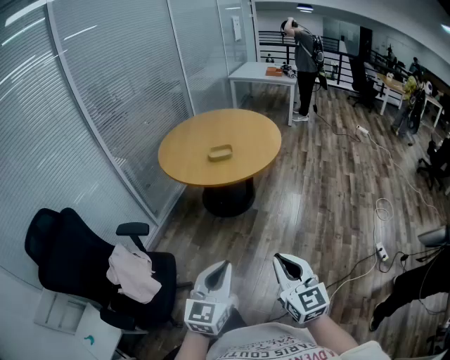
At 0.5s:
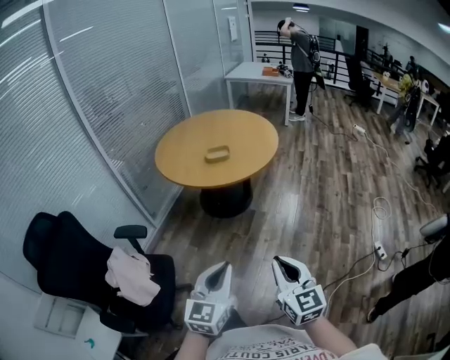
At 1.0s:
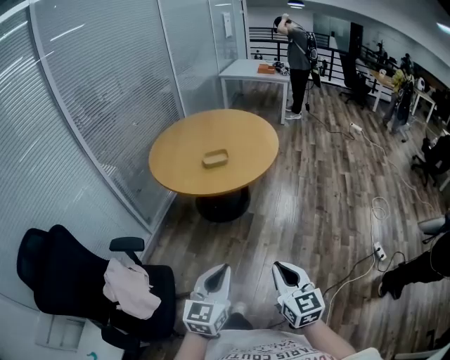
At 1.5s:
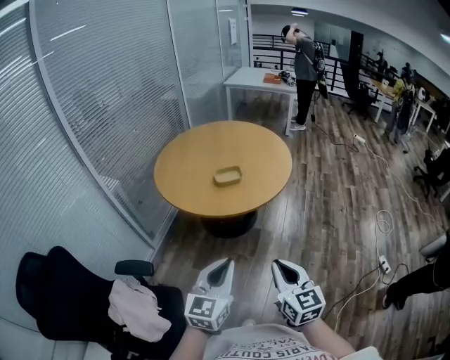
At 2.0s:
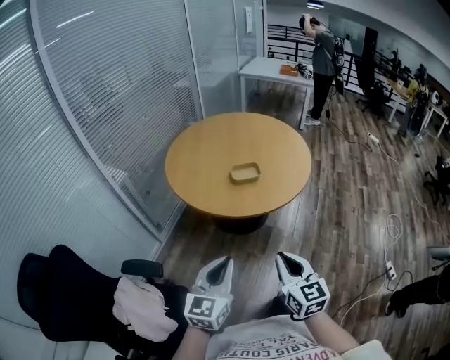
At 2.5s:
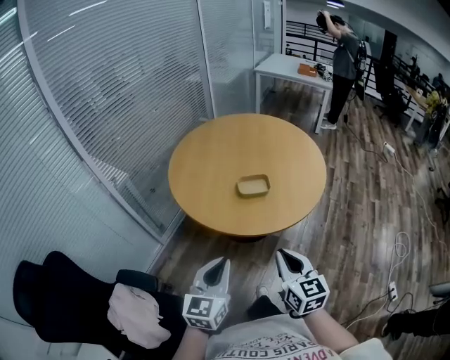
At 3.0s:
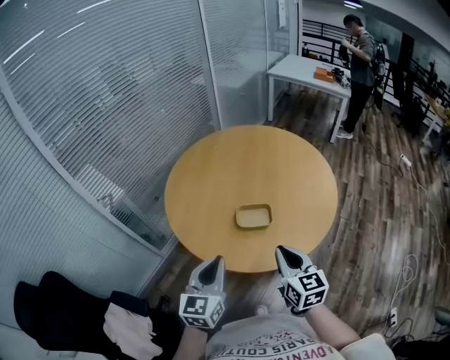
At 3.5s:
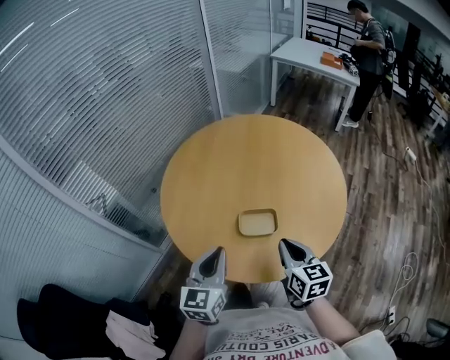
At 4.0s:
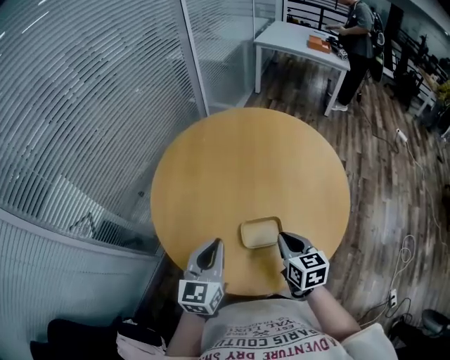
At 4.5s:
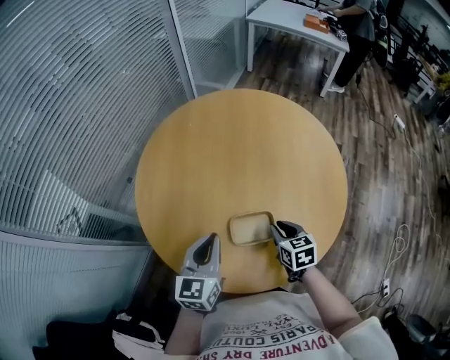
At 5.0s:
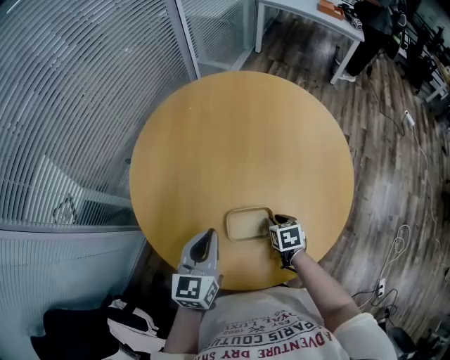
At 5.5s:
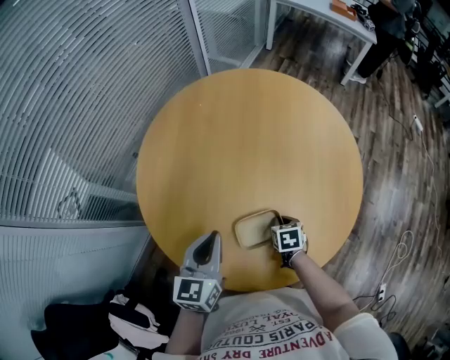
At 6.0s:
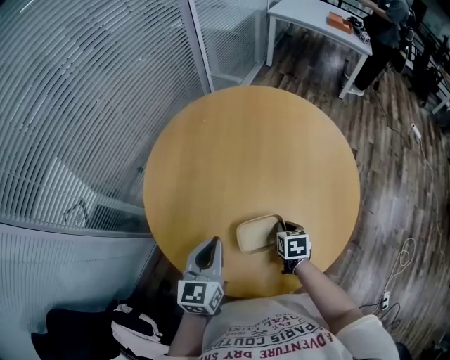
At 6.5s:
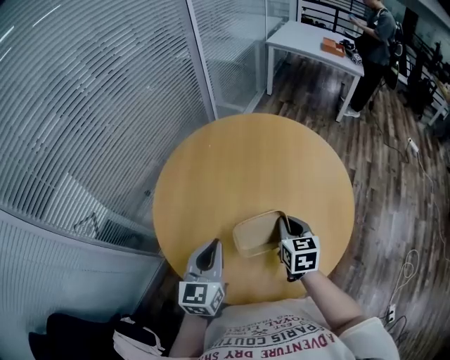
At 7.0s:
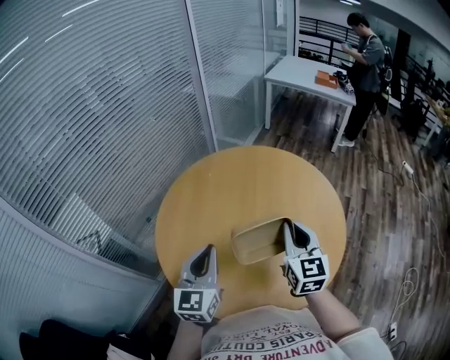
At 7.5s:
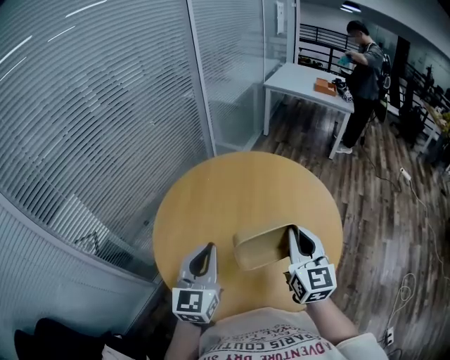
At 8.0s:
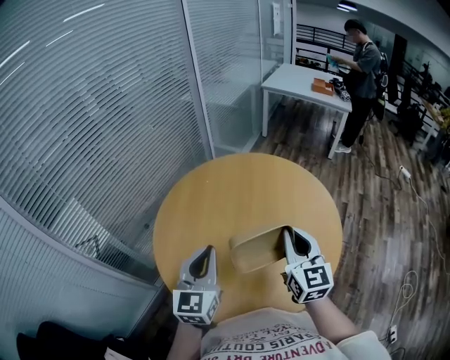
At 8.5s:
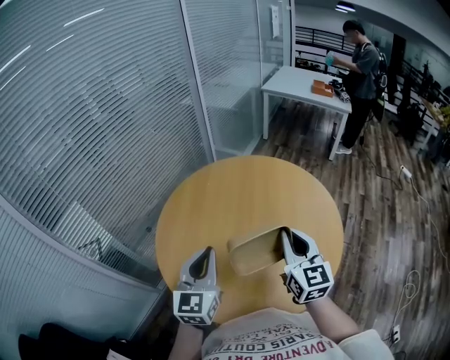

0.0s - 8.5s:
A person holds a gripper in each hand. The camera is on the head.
0.0s - 2.0s: The two grippers go approximately 35 cm forward and to the left.
2.0s - 4.0s: Both grippers are carried forward, about 50 cm. The right gripper turns by roughly 20 degrees.
4.0s - 6.5s: The left gripper goes roughly 5 cm forward, and reaches some 10 cm downward, then returns. The right gripper heads forward, covering some 10 cm, reaches about 25 cm downward, then returns, and opens, then closes once more.
6.5s - 8.5s: The right gripper moves upward, about 20 cm, and turns by roughly 30 degrees. Meanwhile the left gripper goes approximately 10 cm upward.

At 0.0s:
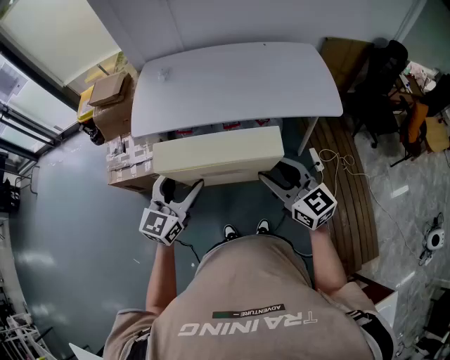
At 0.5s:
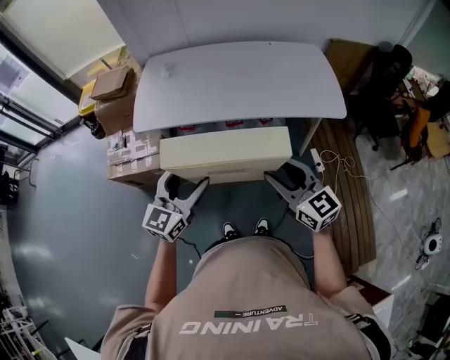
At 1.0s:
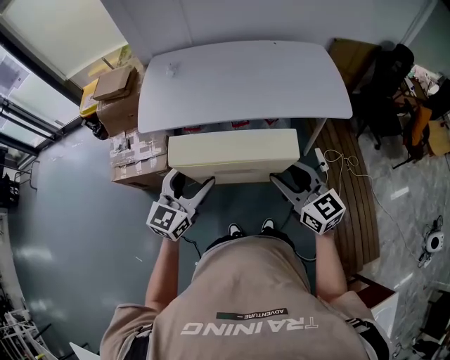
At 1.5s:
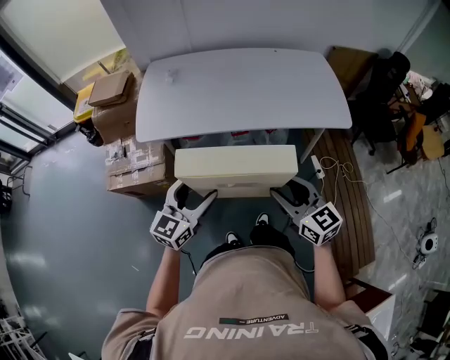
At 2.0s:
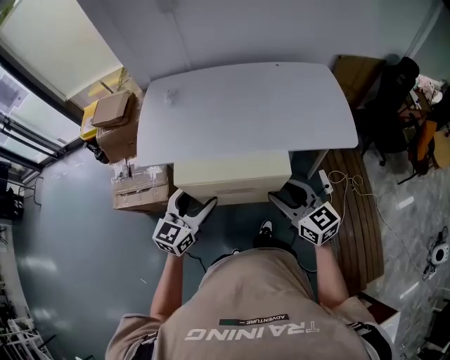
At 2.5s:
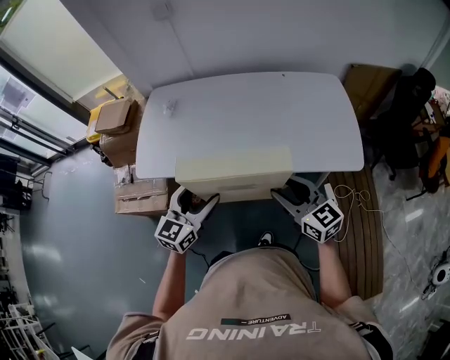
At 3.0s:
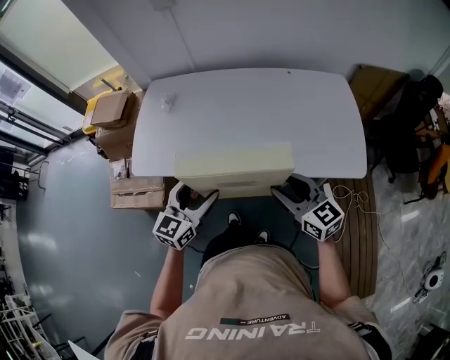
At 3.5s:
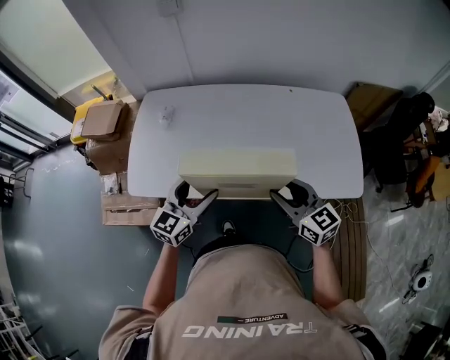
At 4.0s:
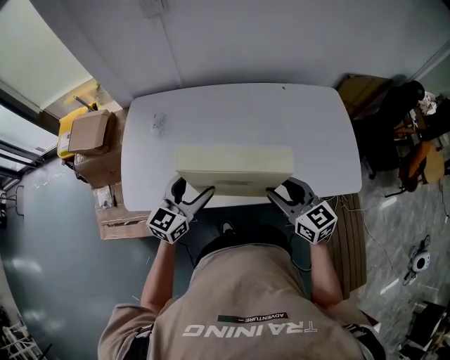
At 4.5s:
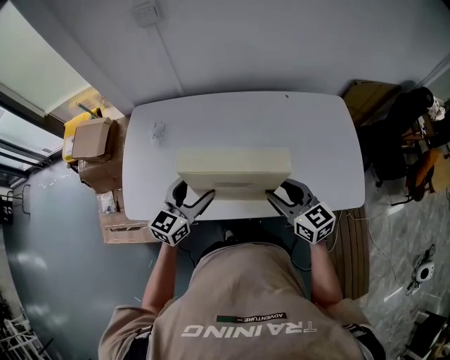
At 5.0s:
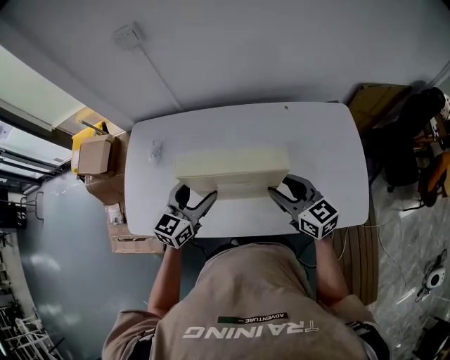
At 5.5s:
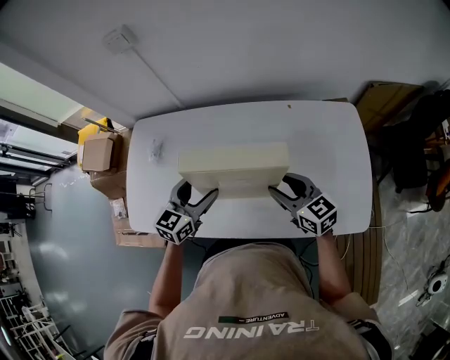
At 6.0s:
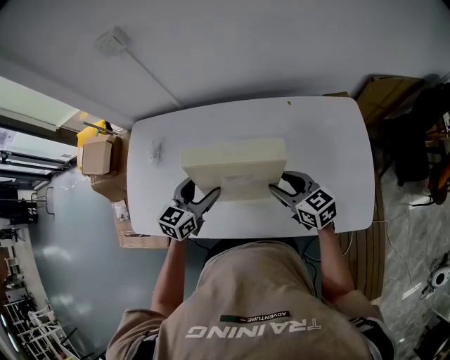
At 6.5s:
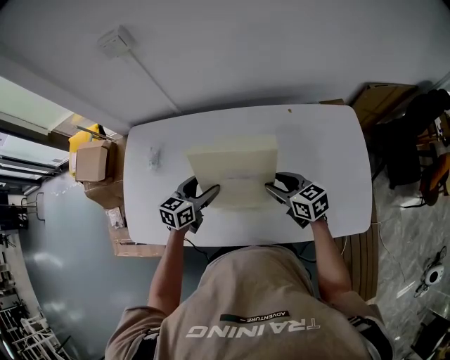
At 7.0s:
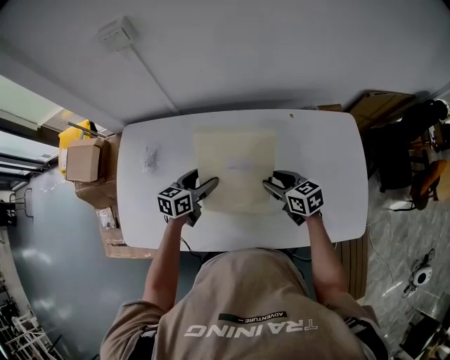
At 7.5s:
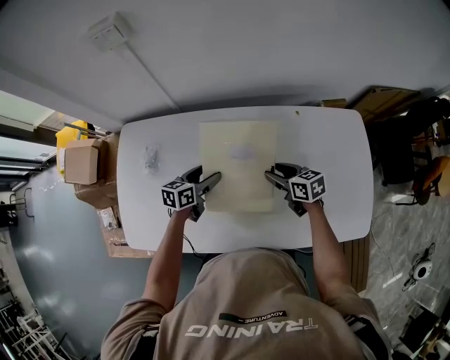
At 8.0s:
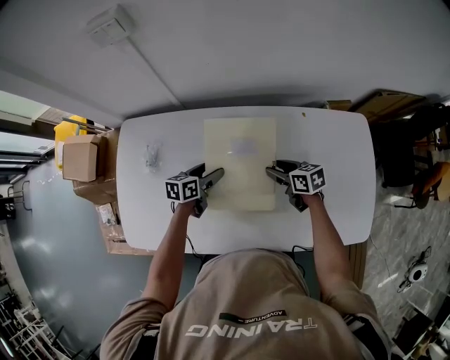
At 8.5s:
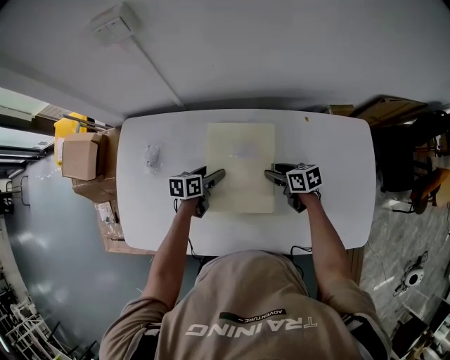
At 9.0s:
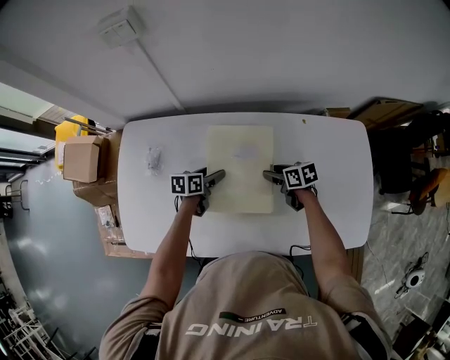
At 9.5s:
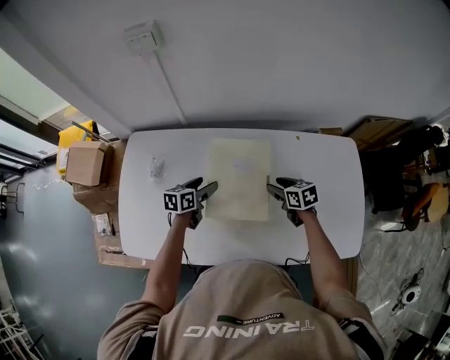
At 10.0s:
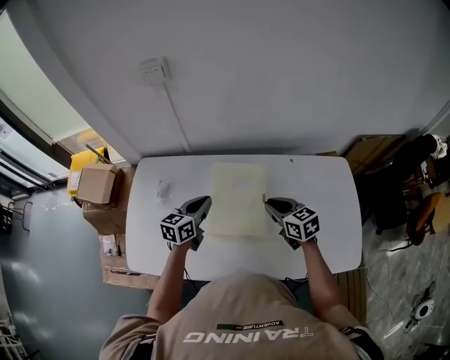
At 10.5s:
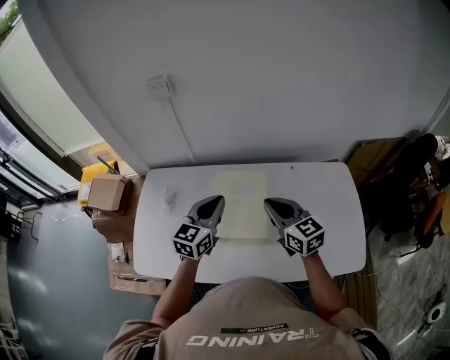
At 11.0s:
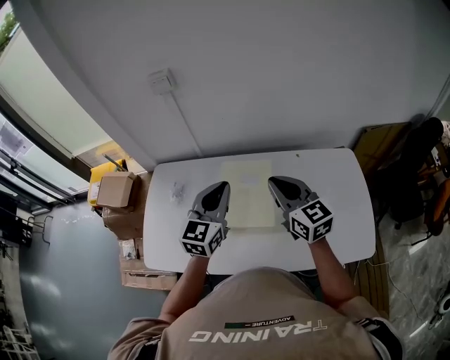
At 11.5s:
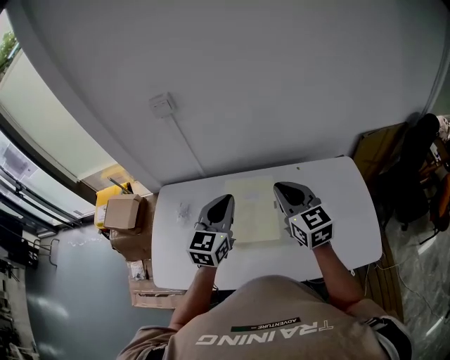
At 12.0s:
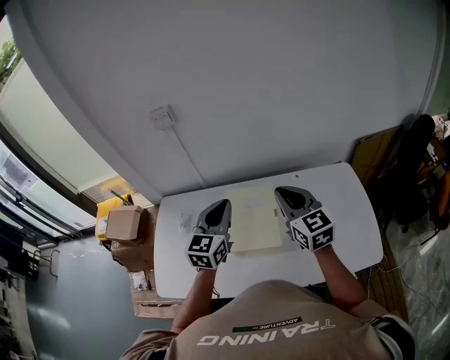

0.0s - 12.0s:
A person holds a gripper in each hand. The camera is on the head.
0.0s - 2.0s: The right gripper shifts about 10 cm forward. Meanwhile the left gripper travels forward and downward by about 15 cm.
2.0s - 4.0s: The grippers both shift forward by approximately 25 cm.
4.0s - 6.0s: The left gripper moves forward and to the right, some 15 cm. The right gripper goes roughly 20 cm forward, to the right and downward.
6.0s - 8.0s: The right gripper shifts roughly 20 cm forward and downward, and turns by some 30 degrees, while the left gripper is displaced downward and forward by roughly 20 cm, and changes its angle by about 30 degrees.
8.0s - 10.0s: Both grippers move upward, some 15 cm. The left gripper changes its angle by about 30 degrees, and closes up. Meanwhile the right gripper rotates about 20 degrees, and closes up.
10.0s - 12.0s: The two grippers go some 20 cm upward. The right gripper rotates some 30 degrees. The left gripper turns by roughly 30 degrees.

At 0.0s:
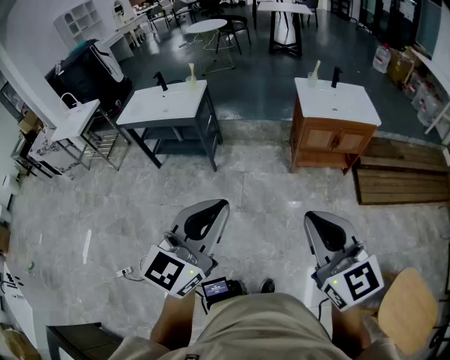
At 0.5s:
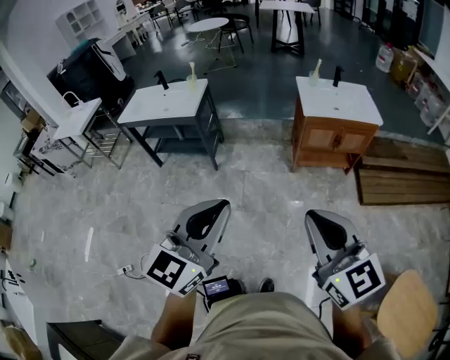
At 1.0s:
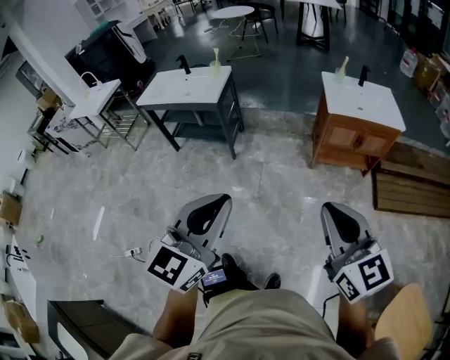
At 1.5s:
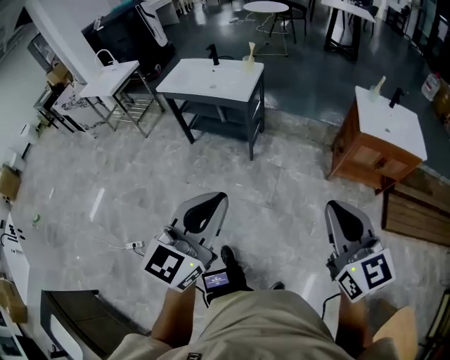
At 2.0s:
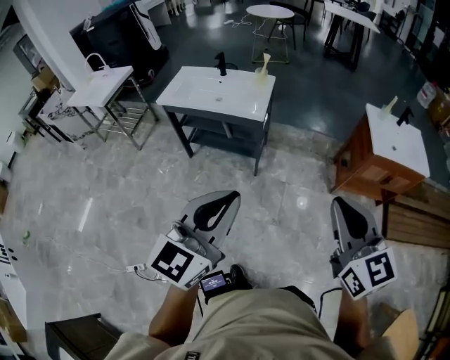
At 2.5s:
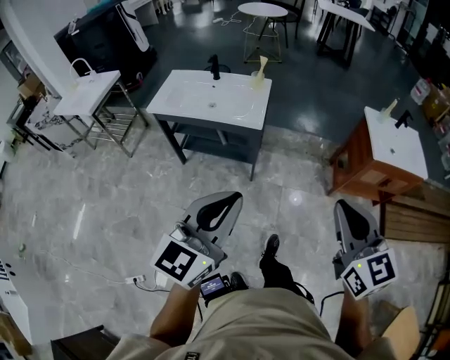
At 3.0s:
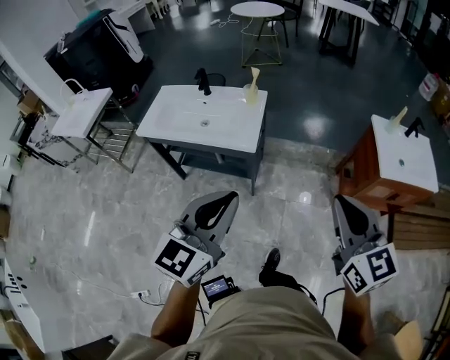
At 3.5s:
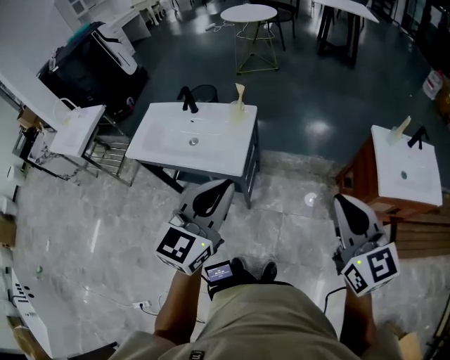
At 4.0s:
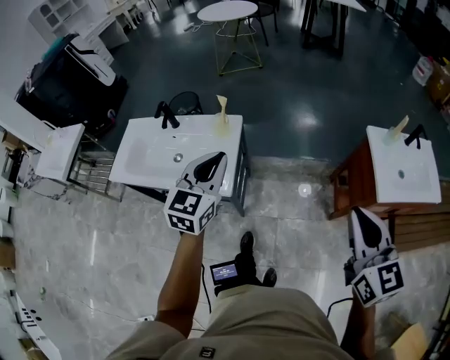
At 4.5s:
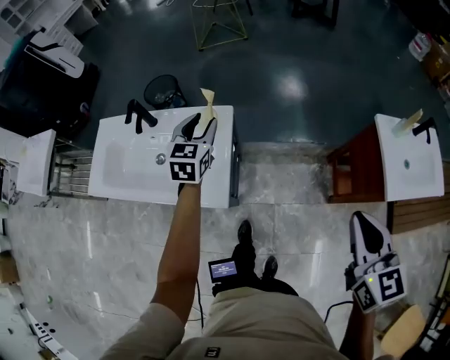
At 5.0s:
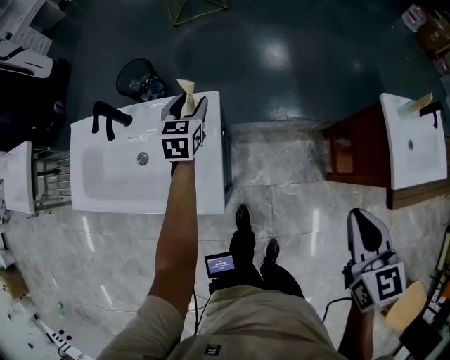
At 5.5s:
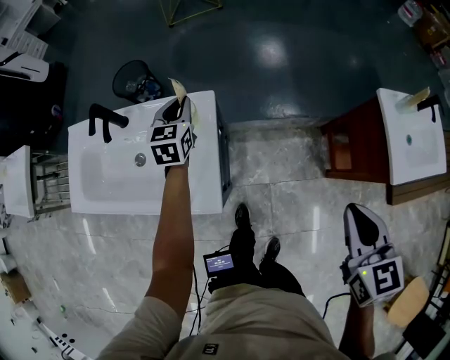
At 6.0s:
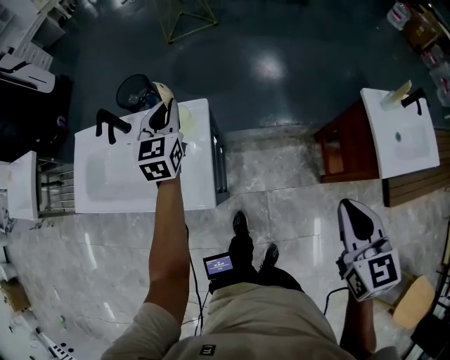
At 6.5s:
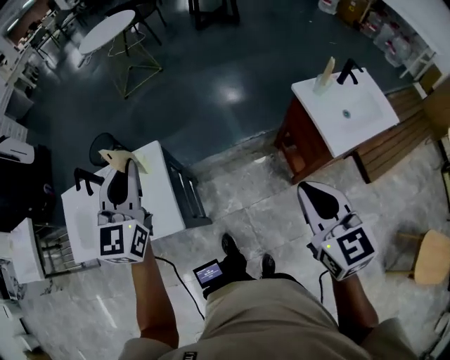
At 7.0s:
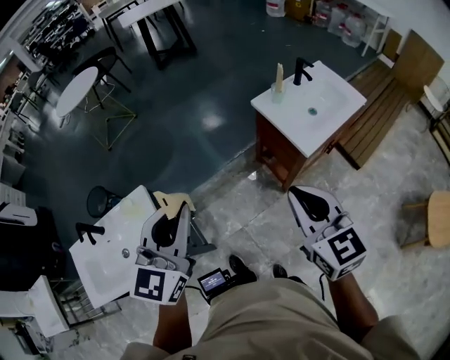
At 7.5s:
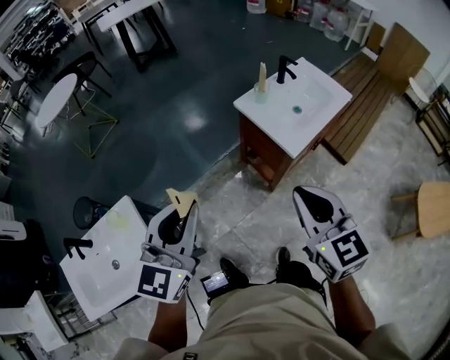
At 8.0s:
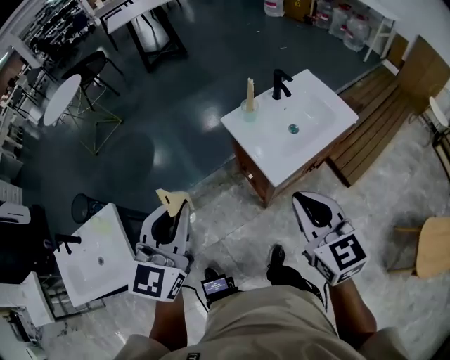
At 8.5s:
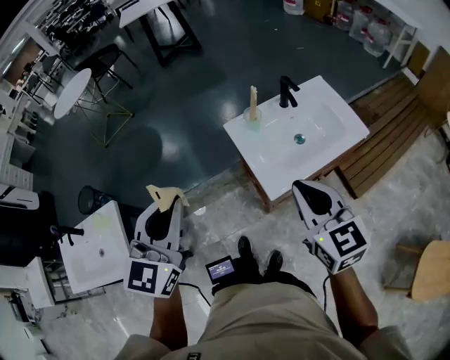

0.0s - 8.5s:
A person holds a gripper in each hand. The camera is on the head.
0.0s - 2.0s: The two grippers travel together, to the left and forward, about 40 cm.
2.0s - 4.0s: The two grippers travel together, forward, roughly 60 cm.
4.0s - 6.5s: The right gripper is displaced forward and downward by roughly 10 cm. Meanwhile the left gripper travels forward by about 15 cm, and opens, then closes again.
6.5s - 8.5s: The pair of grippers is taken roughly 40 cm. The left gripper swivels some 20 degrees.
